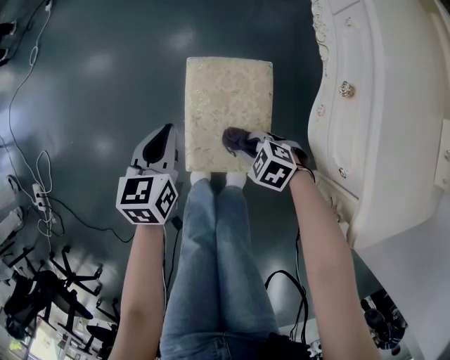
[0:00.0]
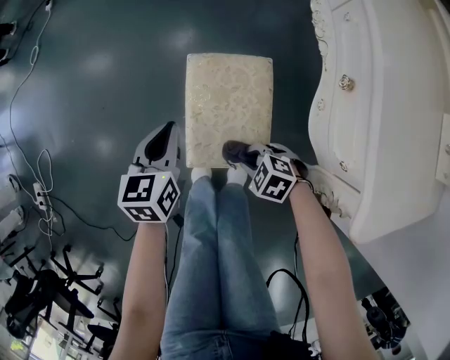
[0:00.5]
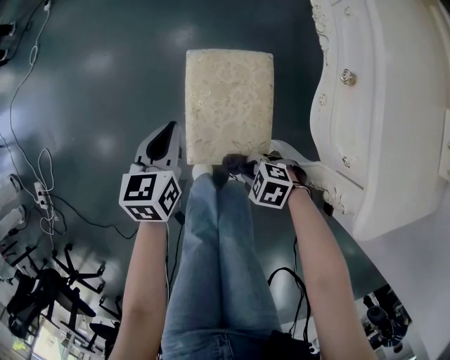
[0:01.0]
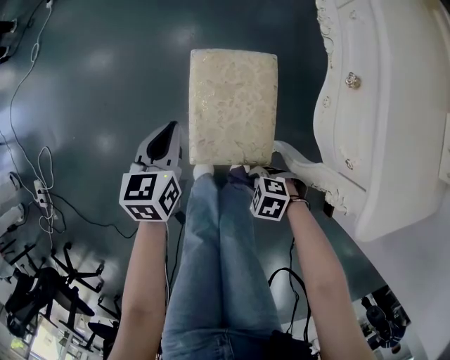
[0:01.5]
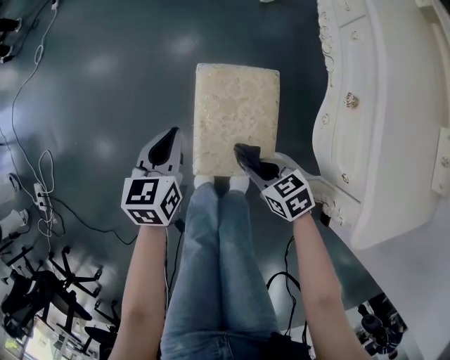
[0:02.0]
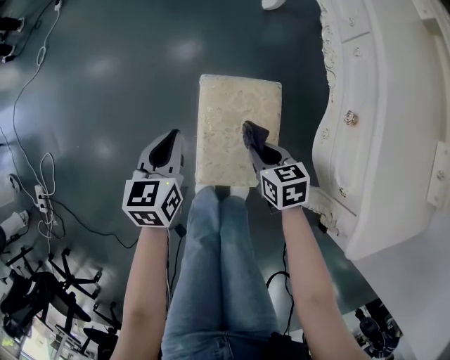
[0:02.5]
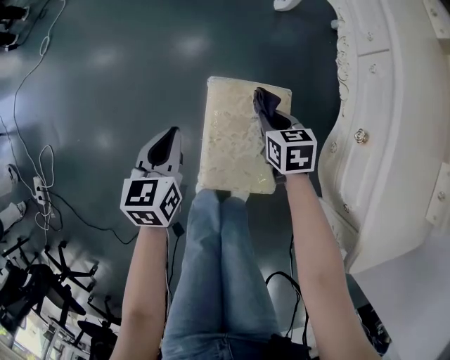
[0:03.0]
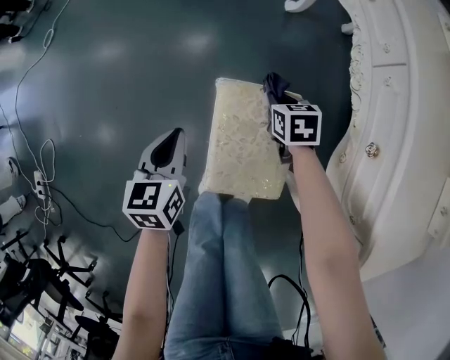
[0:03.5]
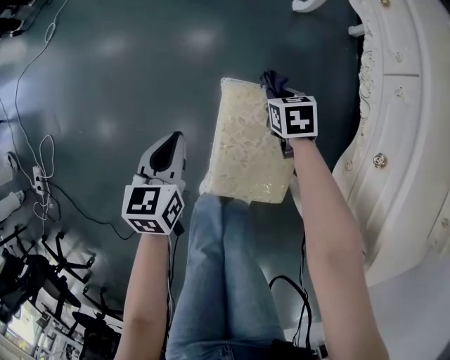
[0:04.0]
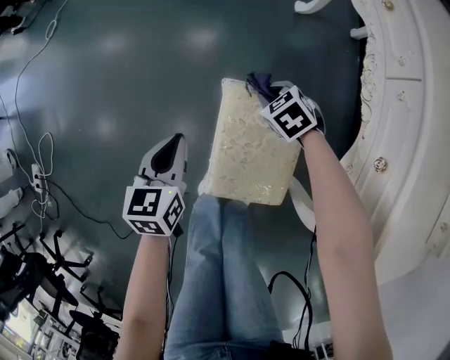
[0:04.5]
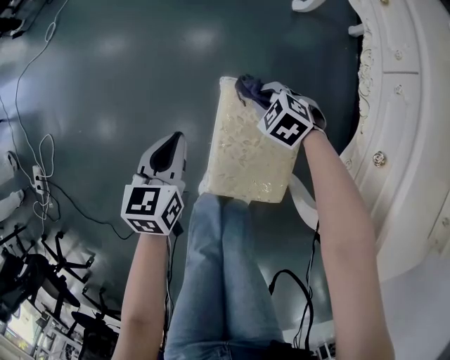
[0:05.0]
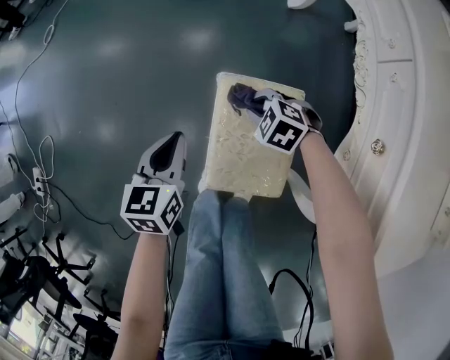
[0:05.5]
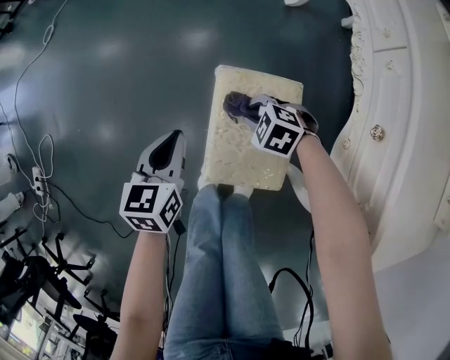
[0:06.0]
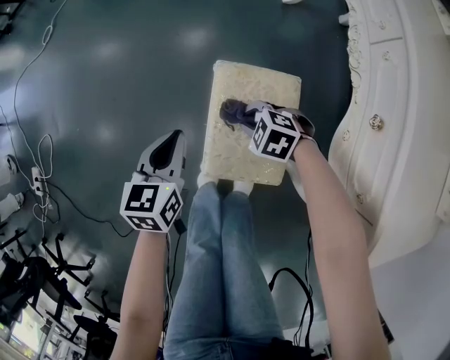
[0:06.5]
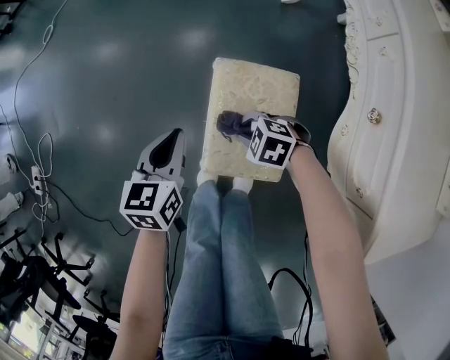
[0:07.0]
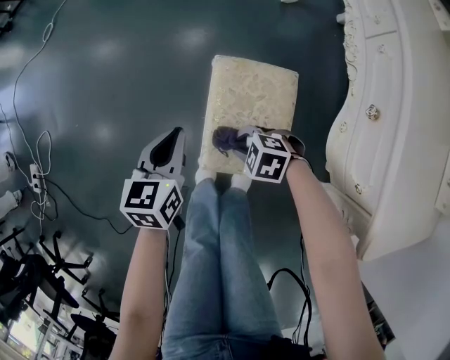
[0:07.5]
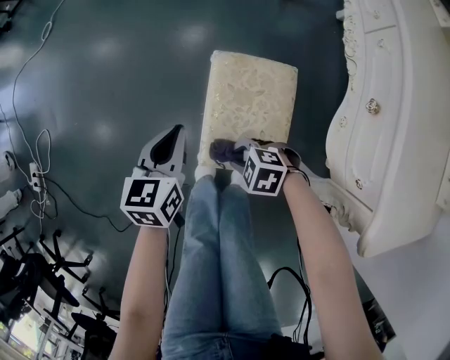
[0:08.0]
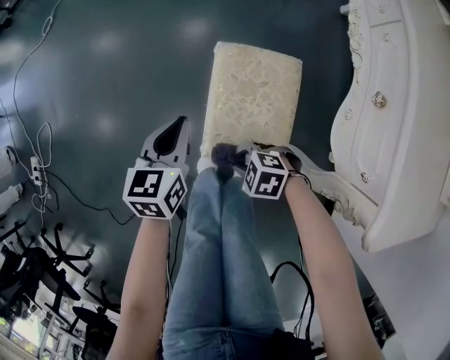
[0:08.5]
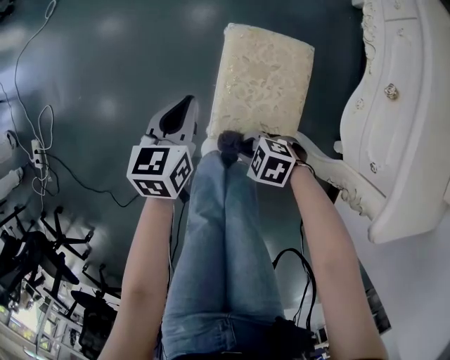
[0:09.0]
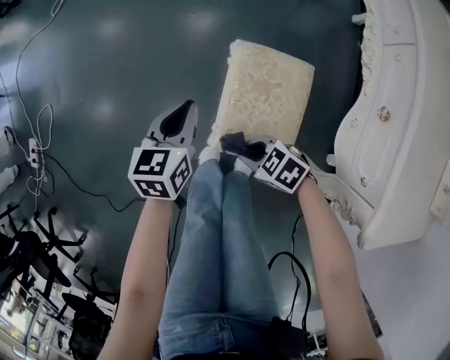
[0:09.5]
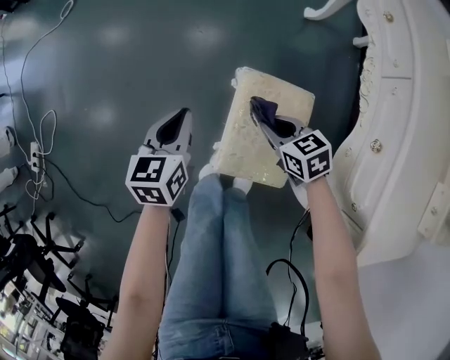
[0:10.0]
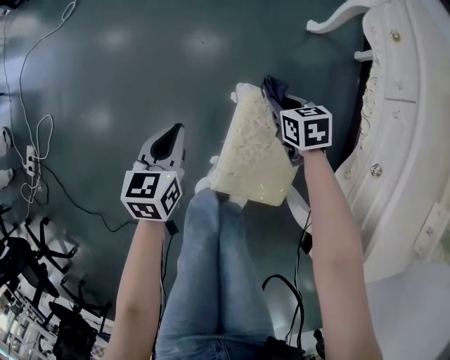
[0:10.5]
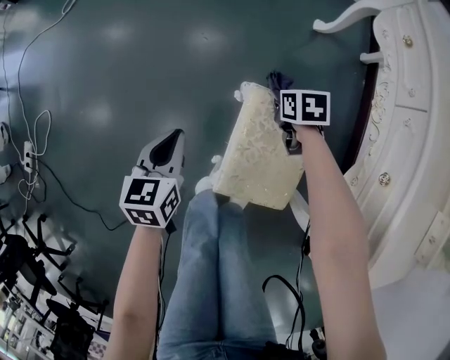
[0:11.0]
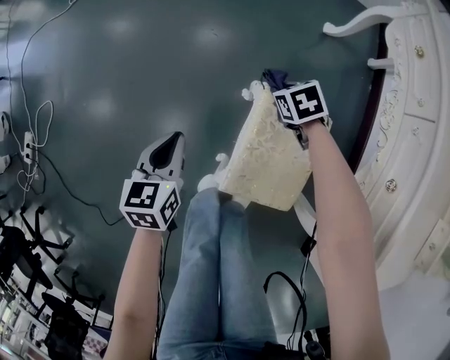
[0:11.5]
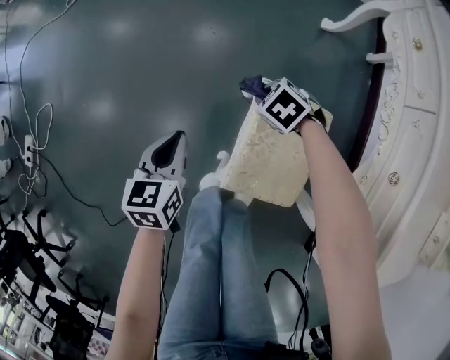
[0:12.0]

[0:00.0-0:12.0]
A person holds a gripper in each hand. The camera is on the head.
0:00.0 to 0:02.0: The right gripper travels upward by roughly 5 cm, and turns by approximately 40 degrees.
0:02.0 to 0:04.0: The right gripper heads forward, covering about 30 cm, and rotates approximately 20 degrees, while the left gripper goes roughly 5 cm forward.
0:04.0 to 0:06.0: The right gripper ends up approximately 15 cm from where it was, and twists roughly 50 degrees counterclockwise, seen from behind.
0:06.0 to 0:08.0: The right gripper moves roughly 20 cm.
0:08.0 to 0:10.0: The right gripper shifts by approximately 20 cm, and changes its angle by some 50 degrees; the left gripper changes place by some 10 cm.
0:10.0 to 0:12.0: The right gripper ends up some 15 cm from where it was, and rotates approximately 40 degrees. Meanwhile the left gripper is displaced downward by some 5 cm.

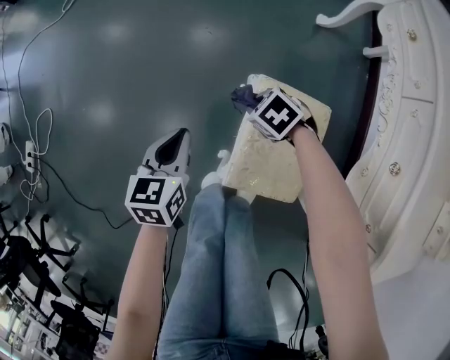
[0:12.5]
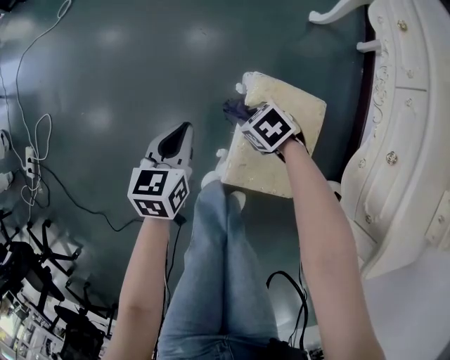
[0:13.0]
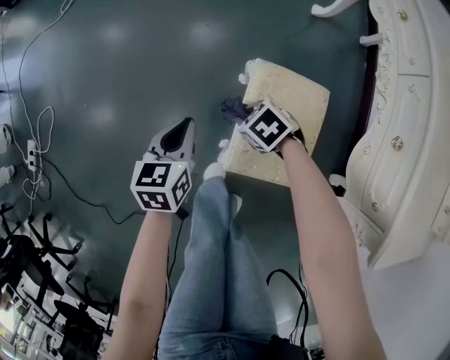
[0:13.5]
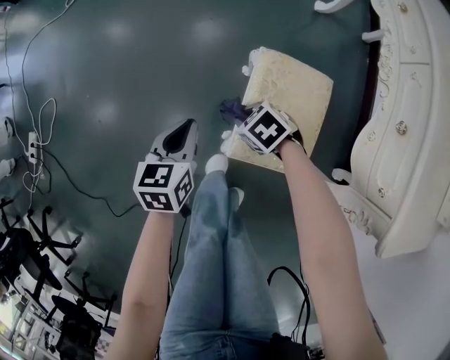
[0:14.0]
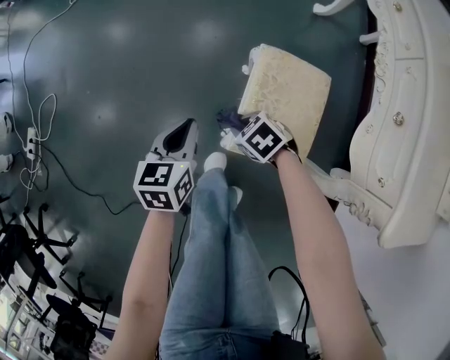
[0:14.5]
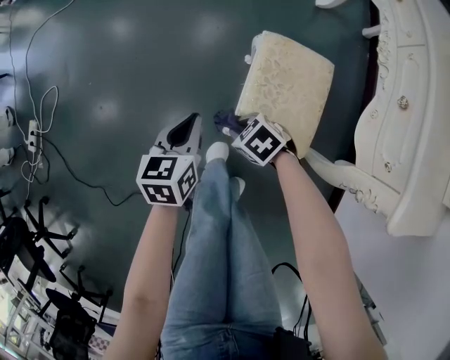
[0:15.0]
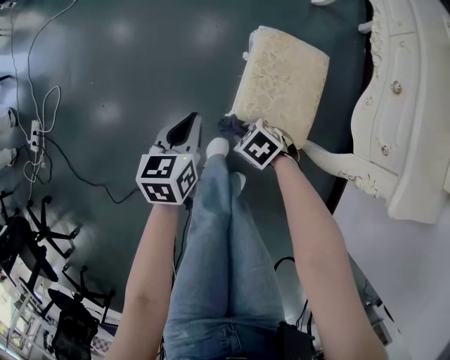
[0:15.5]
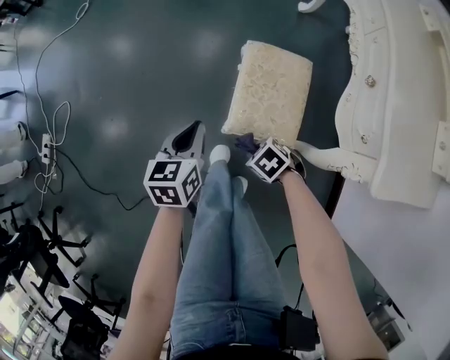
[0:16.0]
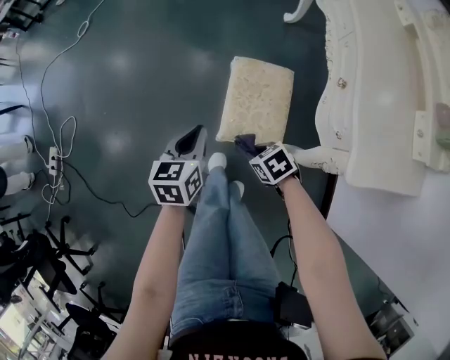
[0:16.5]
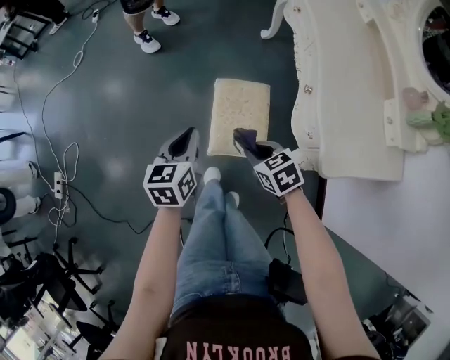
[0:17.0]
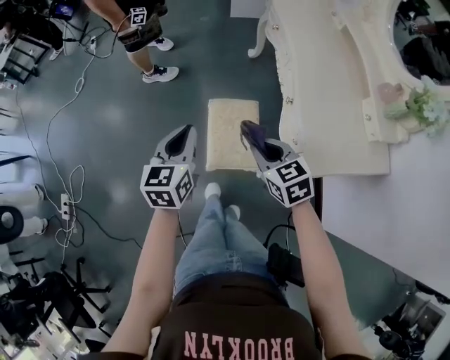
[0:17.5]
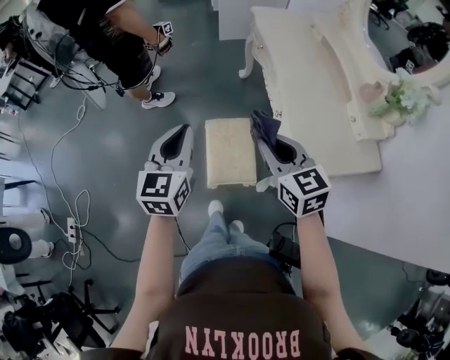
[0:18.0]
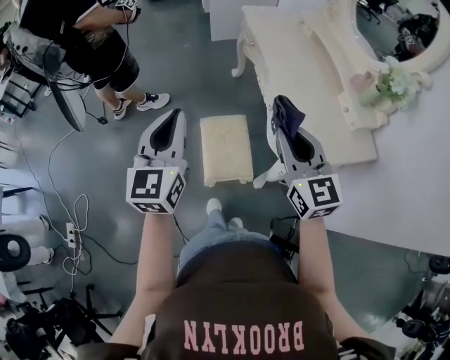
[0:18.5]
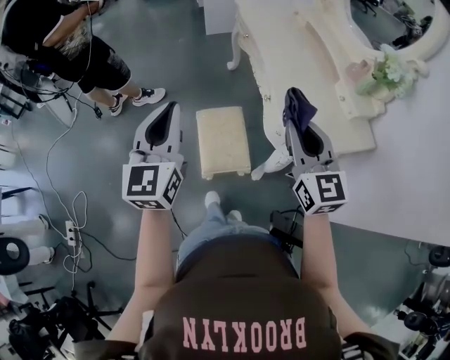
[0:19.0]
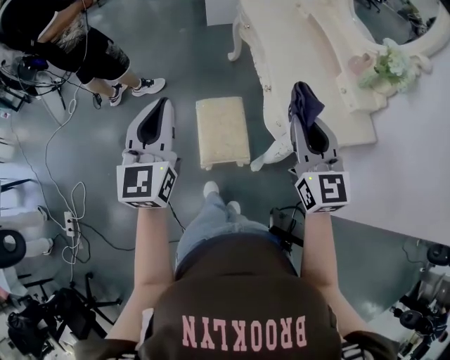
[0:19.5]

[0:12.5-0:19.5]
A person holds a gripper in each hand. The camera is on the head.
0:12.5 to 0:14.5: The right gripper heads backward and to the left, covering some 20 cm; the left gripper is displaced backward by some 10 cm.
0:14.5 to 0:16.0: The right gripper moves backward, roughly 15 cm, while the left gripper shifts approximately 10 cm upward and backward.
0:16.0 to 0:17.5: Both grippers move upward, roughly 30 cm. The right gripper tips its fingers upward by some 30 degrees. Meanwhile the left gripper turns by roughly 20 degrees.
0:17.5 to 0:19.5: The right gripper shifts some 25 cm upward and to the right, and tilts its fingers some 40 degrees upward, while the left gripper moves upward, approximately 20 cm, and rotates some 30 degrees.

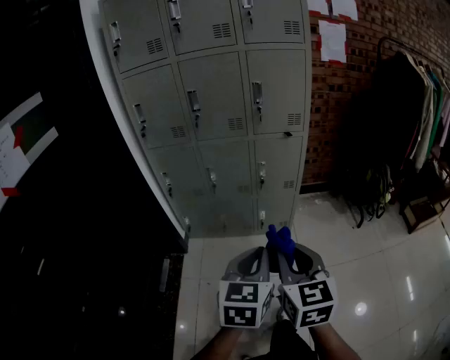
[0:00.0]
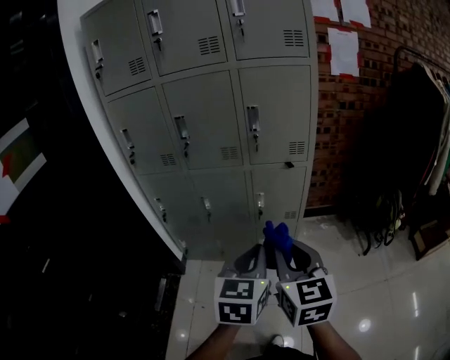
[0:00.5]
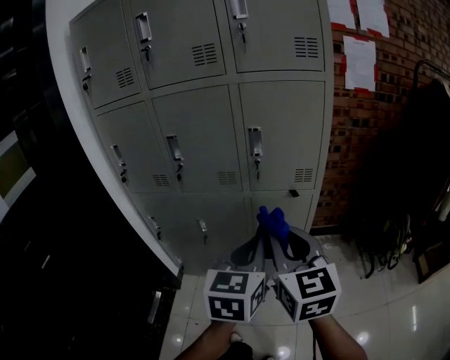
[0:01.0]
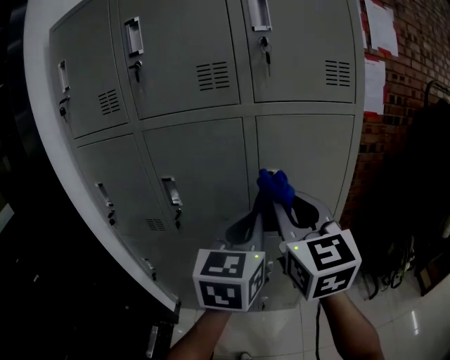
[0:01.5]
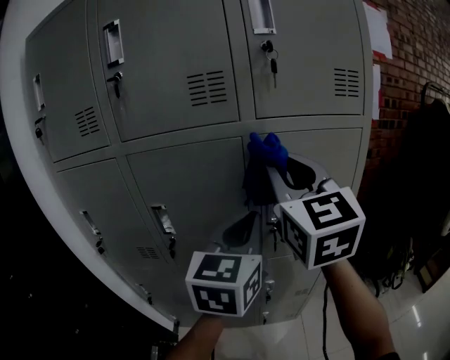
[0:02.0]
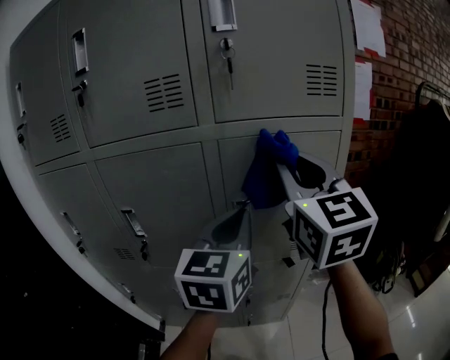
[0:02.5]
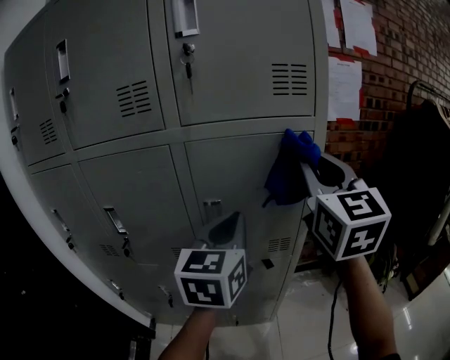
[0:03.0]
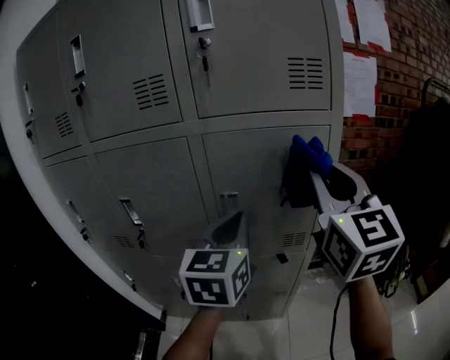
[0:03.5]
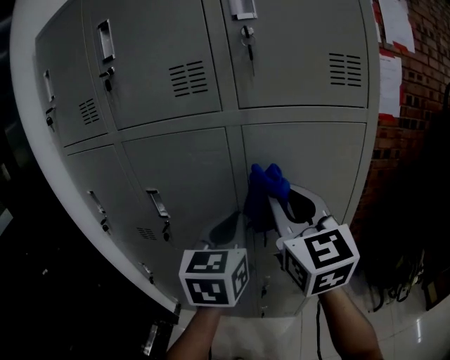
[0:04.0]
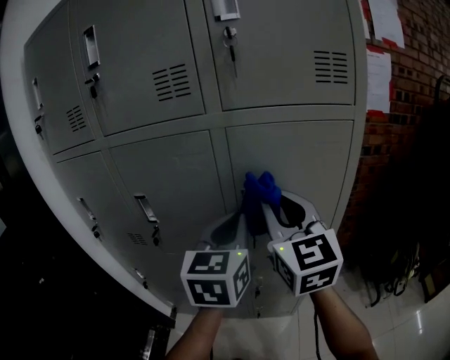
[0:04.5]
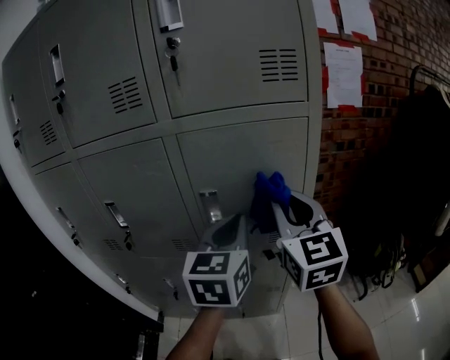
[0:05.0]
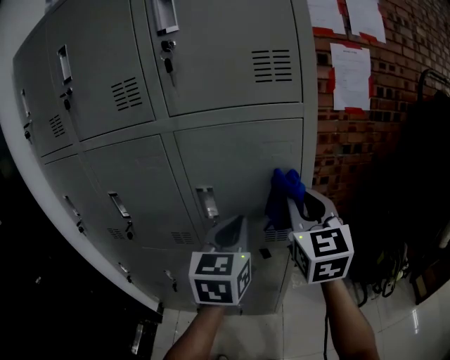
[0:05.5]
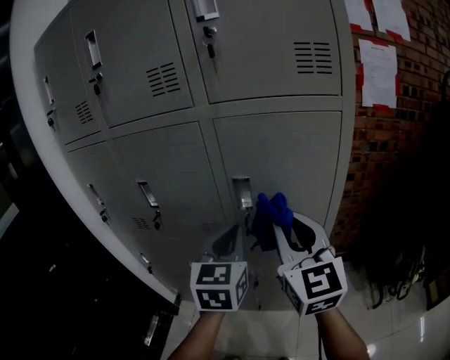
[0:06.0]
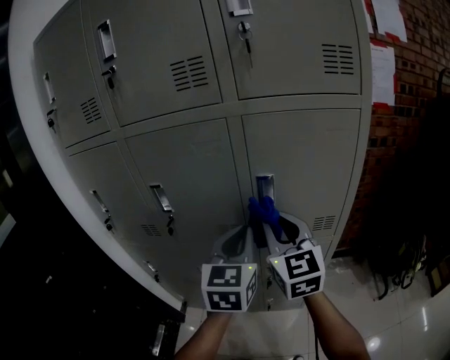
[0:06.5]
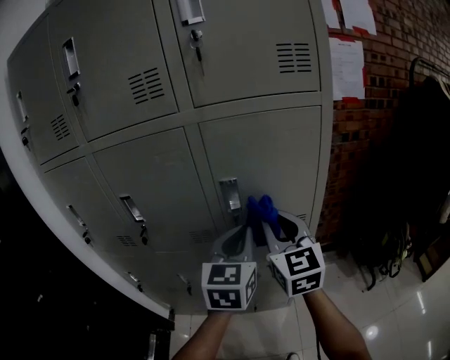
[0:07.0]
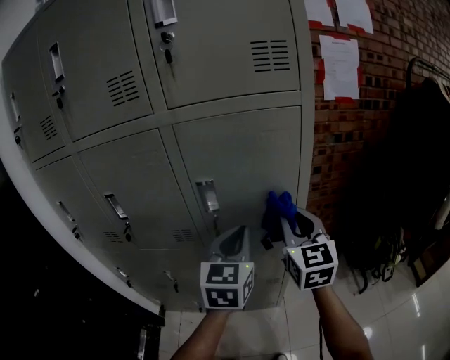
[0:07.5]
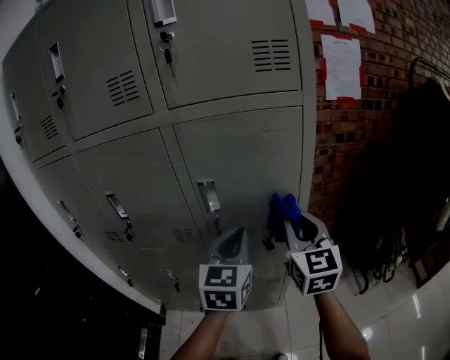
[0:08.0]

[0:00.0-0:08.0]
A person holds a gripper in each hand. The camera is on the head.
0:00.0 to 0:02.0: Both grippers are carried forward, about 60 cm. The right gripper is displaced upward by about 30 cm, and rotates roughly 30 degrees.
0:02.0 to 0:04.0: The left gripper reaches approximately 10 cm to the right, then returns; the right gripper heads downward, covering approximately 10 cm, and reaches roughly 20 cm to the right, then returns.
0:04.0 to 0:06.0: Both grippers travel together downward, some 5 cm. The left gripper reaches roughly 15 cm to the right, then returns. The right gripper moves approximately 20 cm to the right and comes back.
0:06.0 to 0:08.0: The right gripper shifts some 10 cm to the right and downward. Meanwhile the left gripper moves to the right, some 10 cm.
